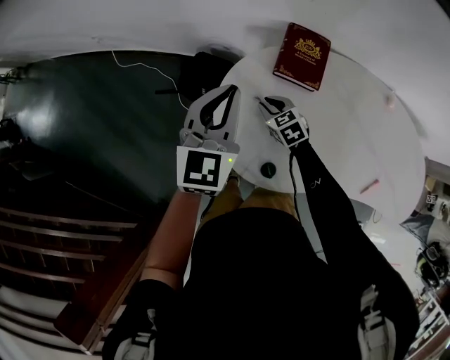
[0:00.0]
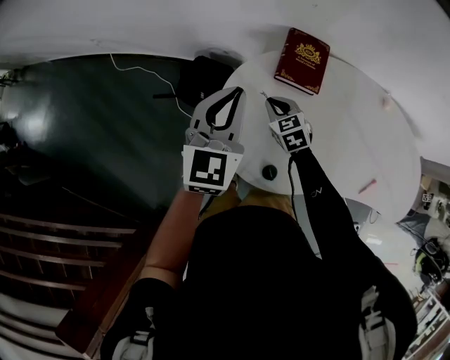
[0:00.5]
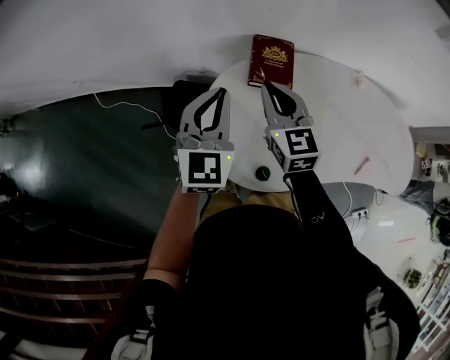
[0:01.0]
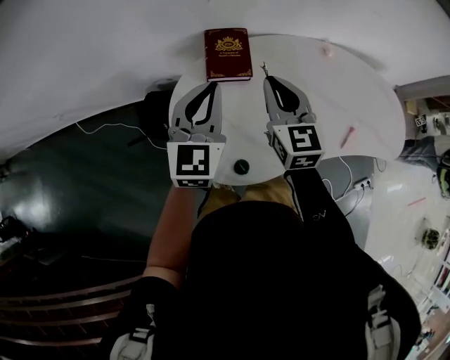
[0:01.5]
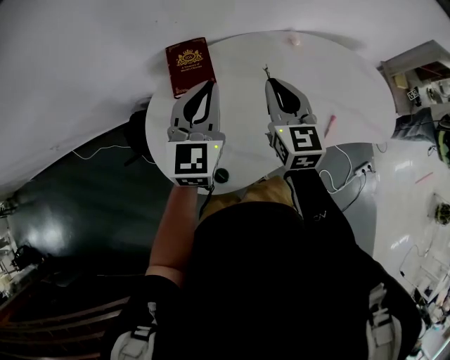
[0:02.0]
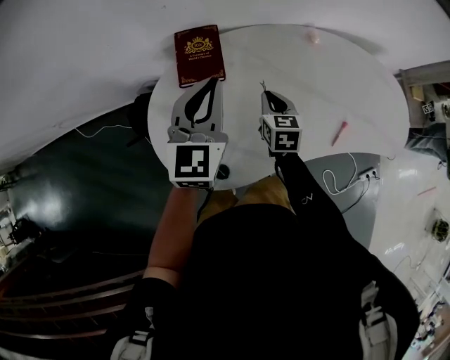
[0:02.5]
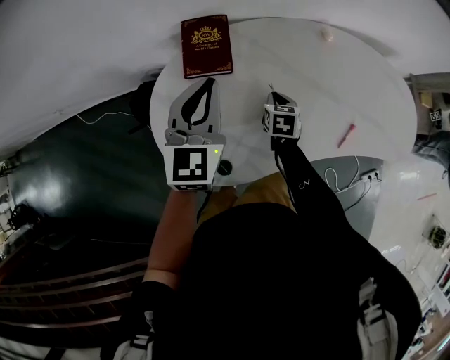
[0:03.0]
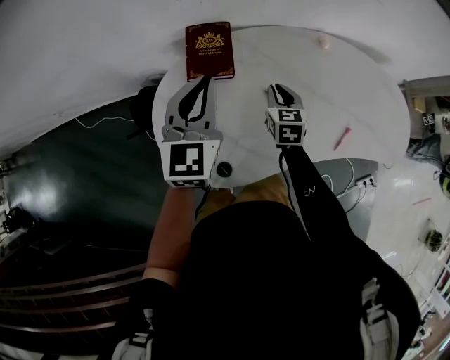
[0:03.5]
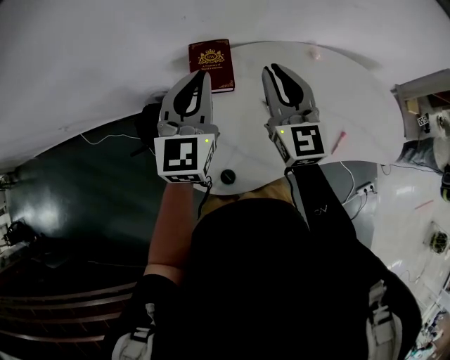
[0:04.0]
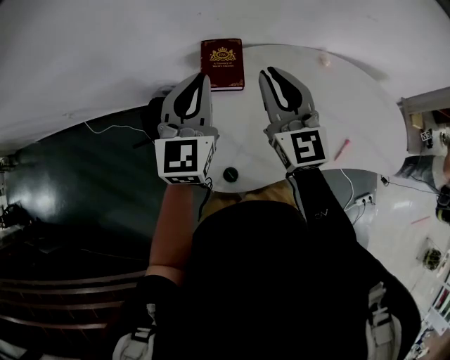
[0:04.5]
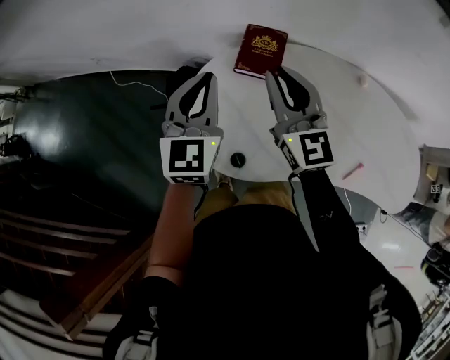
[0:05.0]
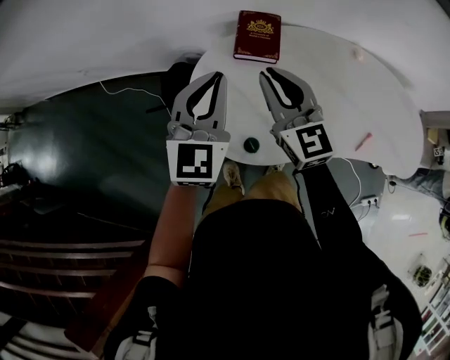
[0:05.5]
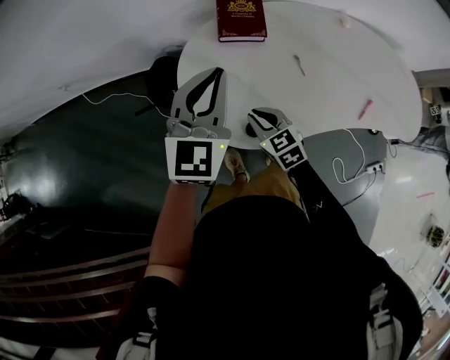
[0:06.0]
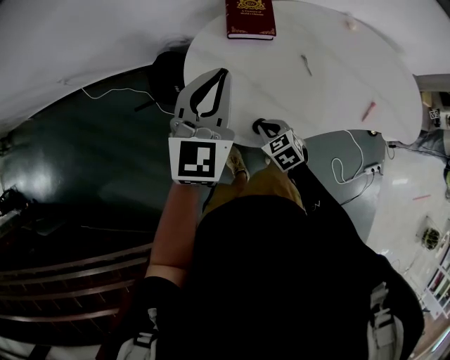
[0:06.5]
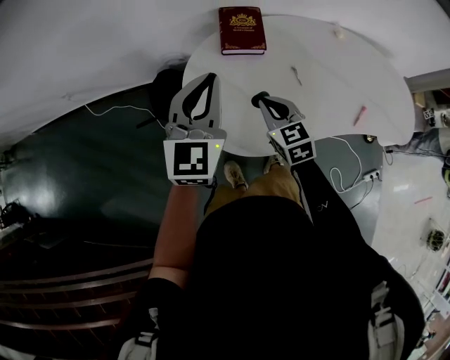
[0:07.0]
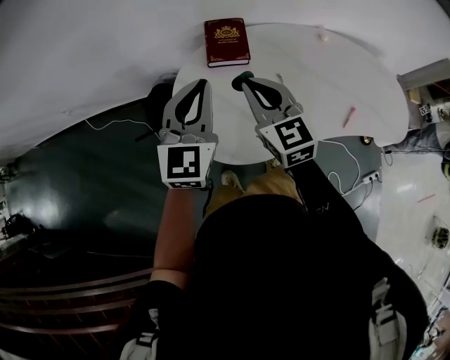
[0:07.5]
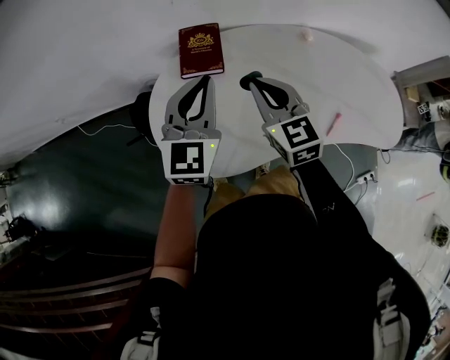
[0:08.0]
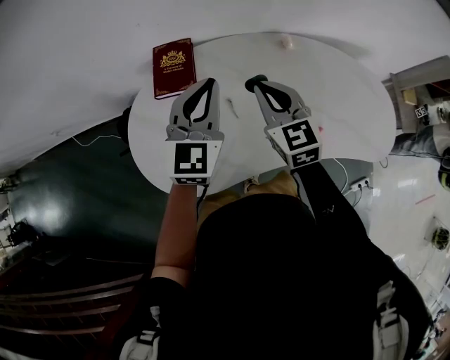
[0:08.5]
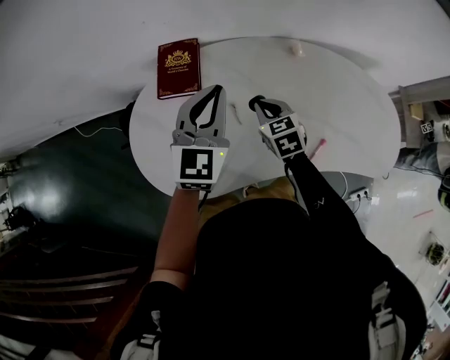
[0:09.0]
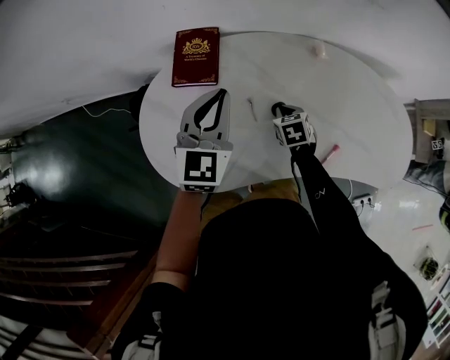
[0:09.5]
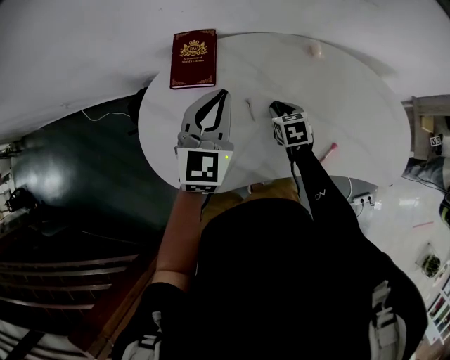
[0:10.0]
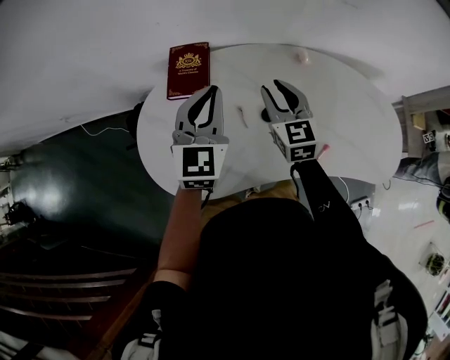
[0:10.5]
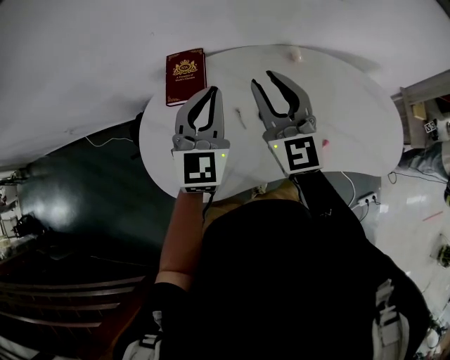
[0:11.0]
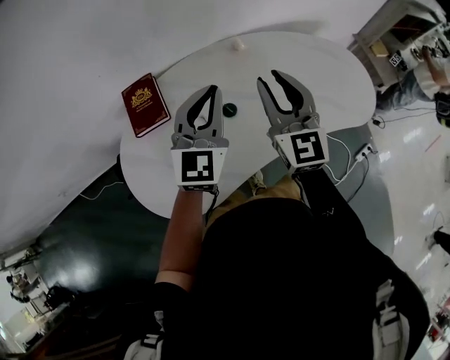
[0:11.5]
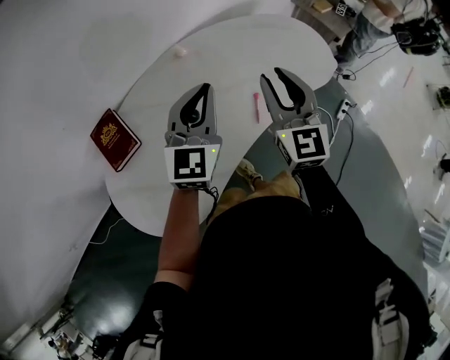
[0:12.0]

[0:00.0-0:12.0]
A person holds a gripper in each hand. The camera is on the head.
0:00.0 to 0:02.0: The right gripper moves approximately 40 cm, and tips its fingers upward by about 30 degrees. Meanwhile the left gripper moves approximately 20 cm, and turns by roughly 20 degrees.
0:02.0 to 0:04.0: Both grippers travel together to the left, approximately 5 cm. The right gripper goes downward and returns, roughly 25 cm each way, and rotates roughly 20 degrees.
0:04.0 to 0:06.0: The left gripper travels backward, to the left and downward by about 15 cm, while the right gripper is displaced downward, to the left and backward by roughly 35 cm, and tilts its fingers roughly 40 degrees downward.
0:06.0 to 0:08.0: The right gripper shifts about 25 cm upward, to the right and forward, and turns by some 30 degrees. Meanwhile the left gripper heads to the right, covering some 10 cm.
0:08.0 to 0:10.0: The left gripper heads to the right, downward and forward, covering roughly 15 cm. Meanwhile the right gripper moves downward and to the right, some 30 cm, angles its fingers downward, by approximately 40 degrees, and opens its fingers.
0:10.0 to 0:12.0: The left gripper changes place by roughly 20 cm, and turns by some 40 degrees. The right gripper is displaced upward by approximately 30 cm, and tips its fingers upward by some 50 degrees.

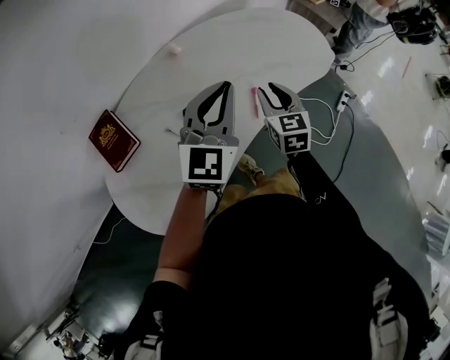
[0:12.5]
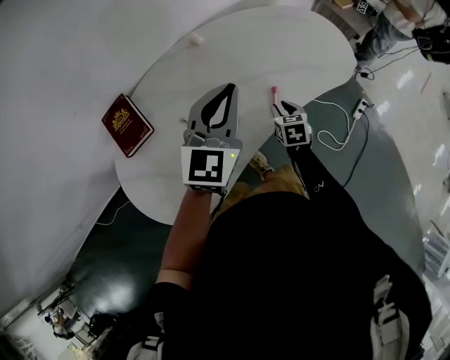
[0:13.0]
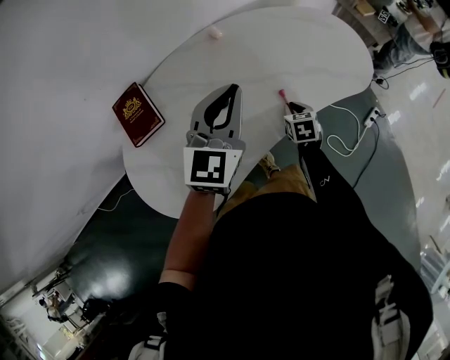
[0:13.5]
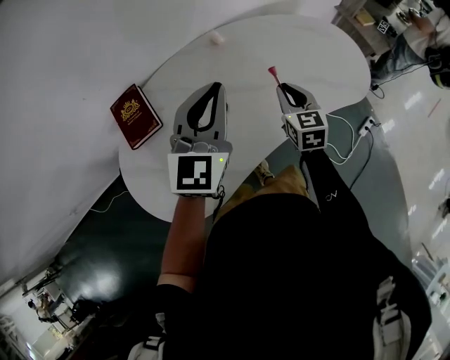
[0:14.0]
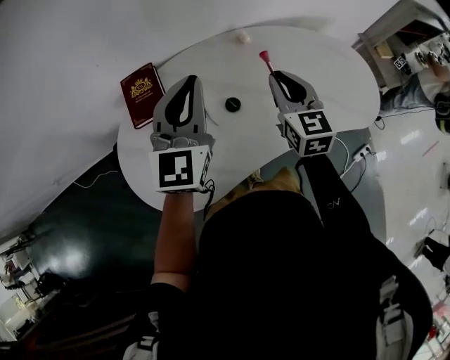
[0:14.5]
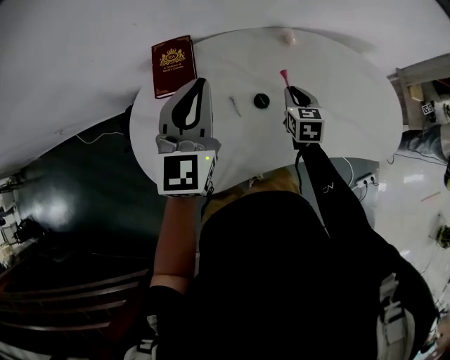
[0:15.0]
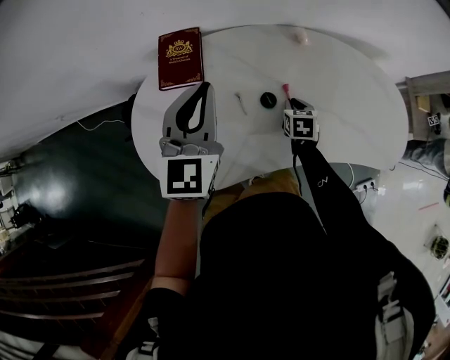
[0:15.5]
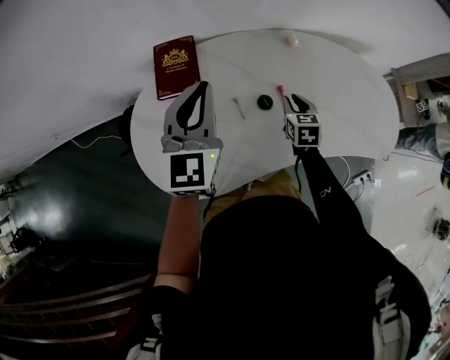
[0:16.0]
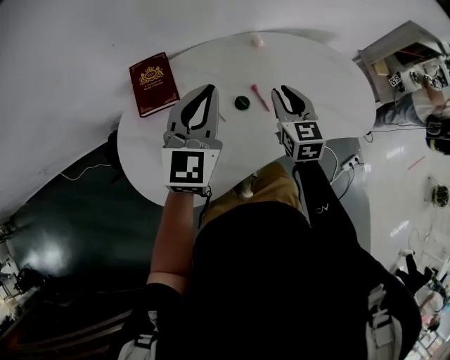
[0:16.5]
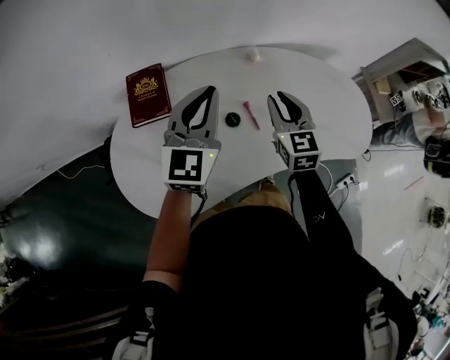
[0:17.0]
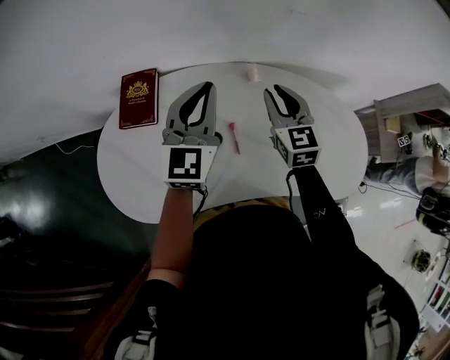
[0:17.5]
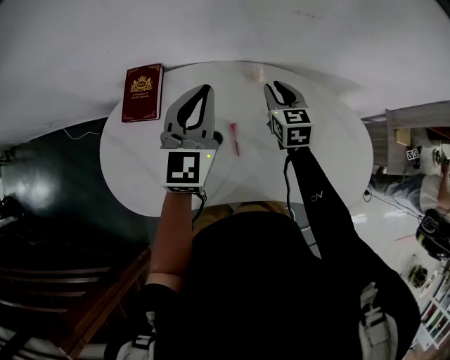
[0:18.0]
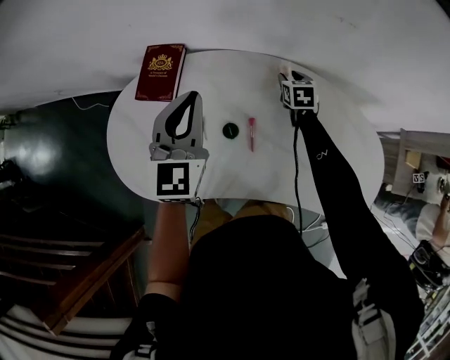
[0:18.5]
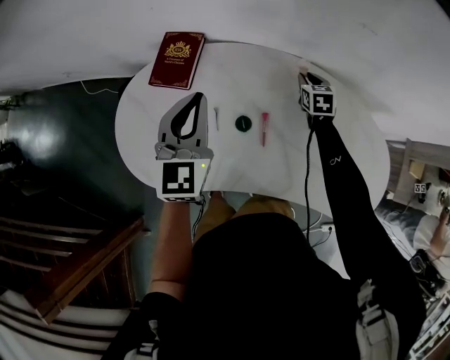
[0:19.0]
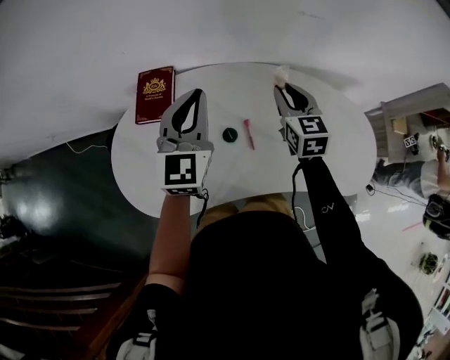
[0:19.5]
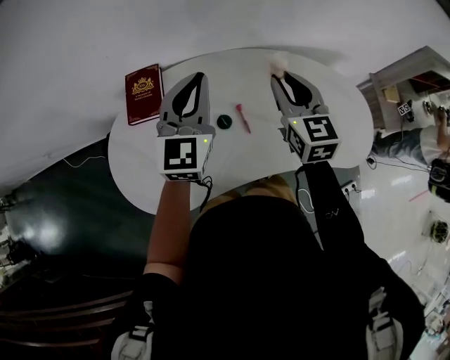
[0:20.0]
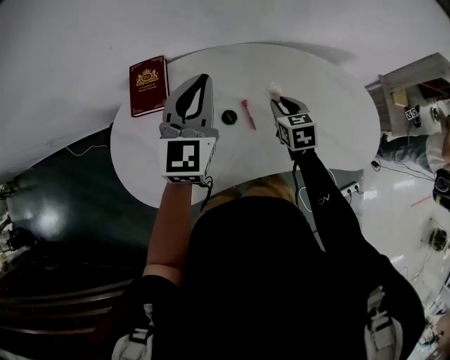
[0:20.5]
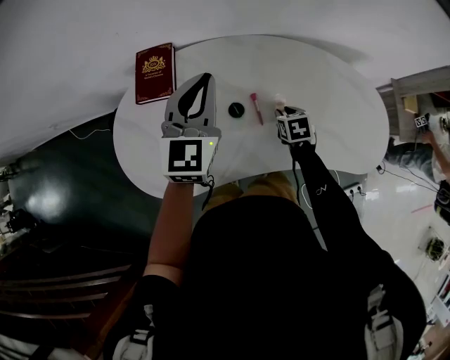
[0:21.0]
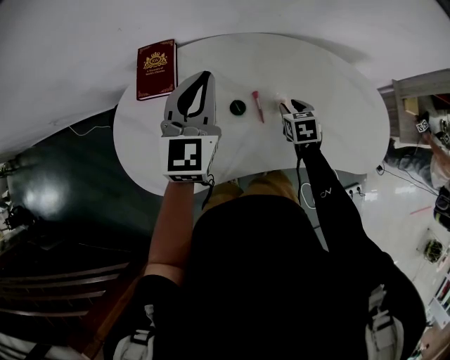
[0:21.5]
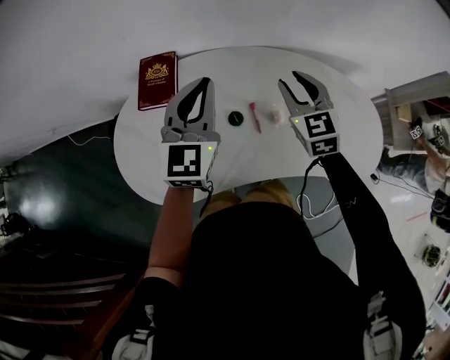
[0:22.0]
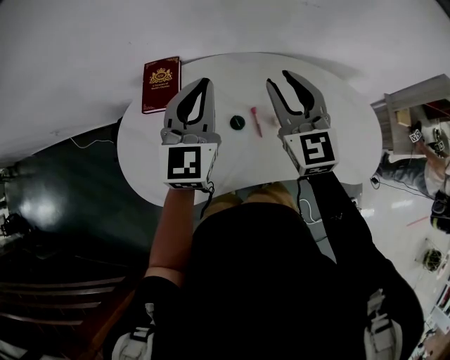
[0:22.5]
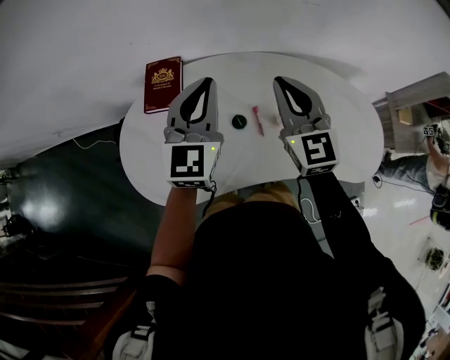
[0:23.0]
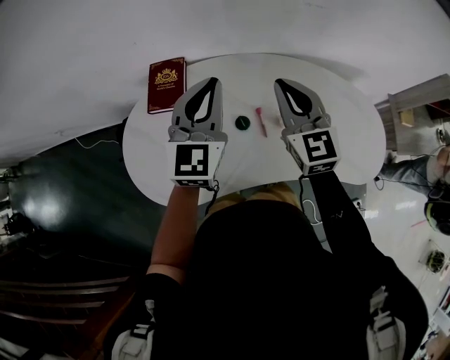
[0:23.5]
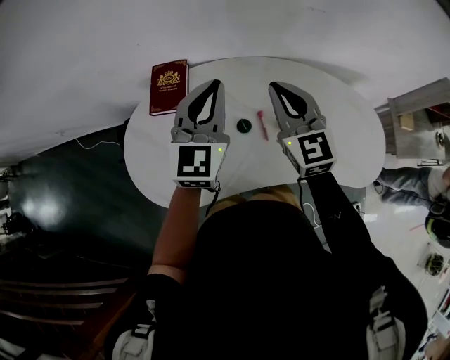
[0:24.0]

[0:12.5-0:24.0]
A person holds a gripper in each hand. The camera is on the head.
0:12.5 to 0:14.5: The left gripper ends up approximately 20 cm from where it was, and swivels roughly 30 degrees; the right gripper goes downward and returns, approximately 20 cm each way, and swivels some 30 degrees.
0:14.5 to 0:16.5: The right gripper goes downward and returns, approximately 25 cm each way.
0:16.5 to 0:18.5: The right gripper moves approximately 35 cm, and swivels approximately 30 degrees, while the left gripper changes its angle by roughly 30 degrees.
0:18.5 to 0:20.0: The left gripper turns by about 20 degrees; the right gripper travels upward and backward by about 35 cm, and points its fingers approximately 30 degrees further upward.
0:20.0 to 0:22.0: The right gripper reaches about 30 cm downward, then returns.
0:22.0 to 0:24.0: The right gripper is displaced upward and to the left by about 10 cm, and closes its fingers.

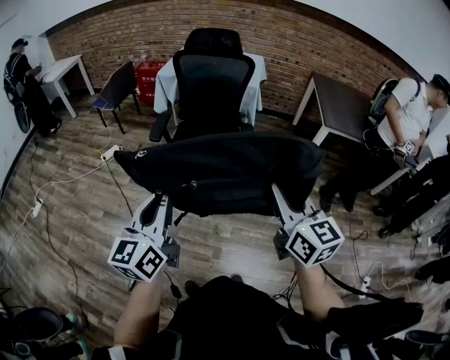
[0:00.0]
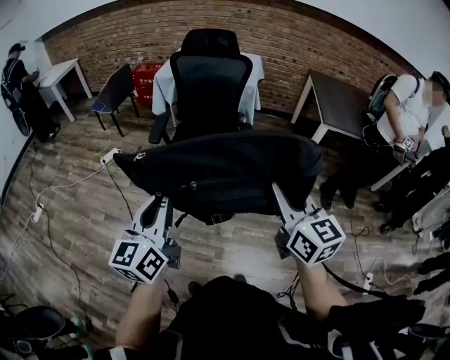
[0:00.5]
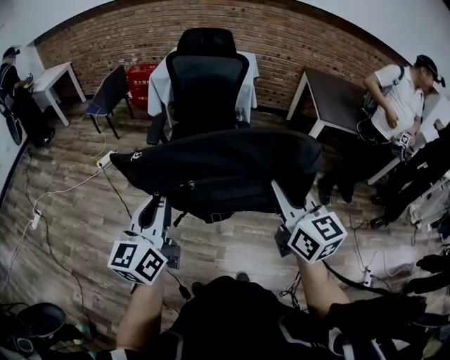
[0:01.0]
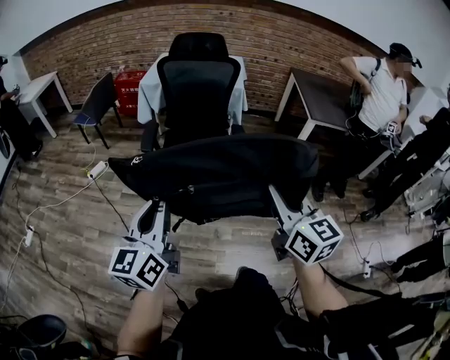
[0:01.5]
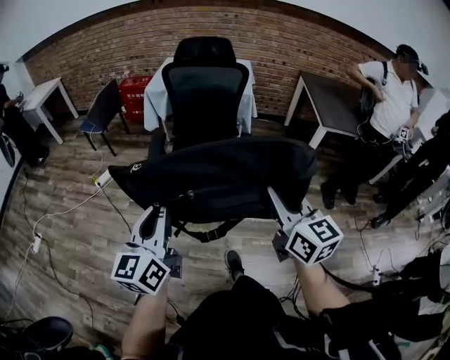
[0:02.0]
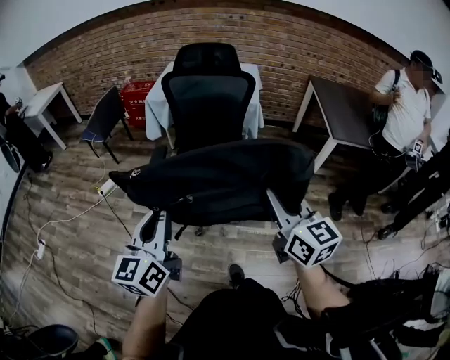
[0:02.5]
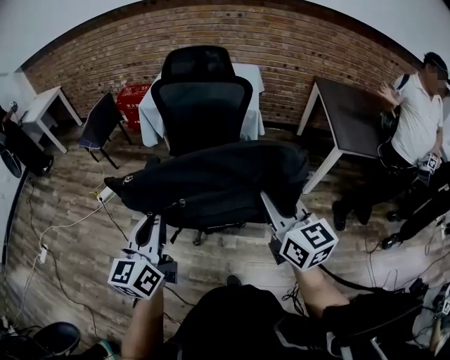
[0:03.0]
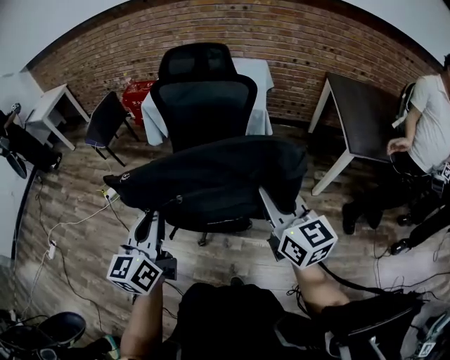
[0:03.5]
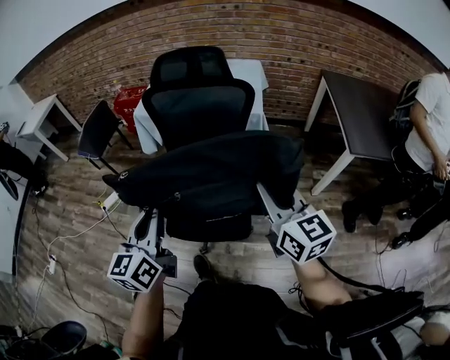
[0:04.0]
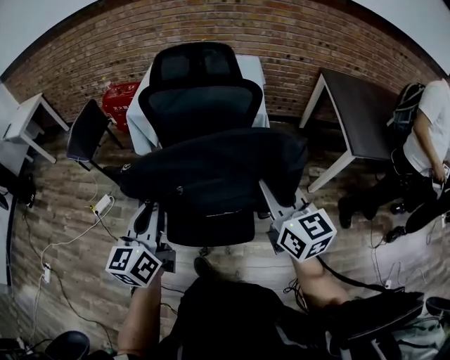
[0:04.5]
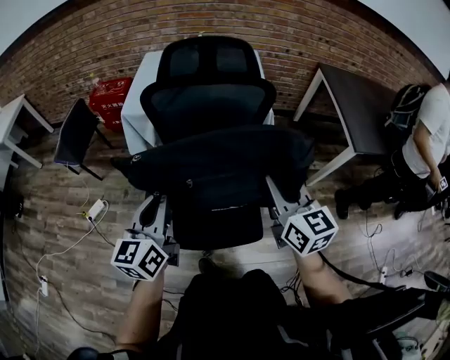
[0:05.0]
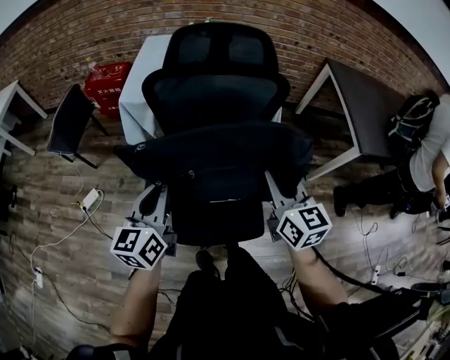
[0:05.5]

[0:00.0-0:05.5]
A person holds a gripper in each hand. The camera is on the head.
0:00.0 to 0:02.0: The two grippers go approximately 10 cm forward and to the left.
0:02.0 to 0:03.5: The grippers both shift forward and to the right by about 25 cm.
0:03.5 to 0:05.5: Both grippers move forward and to the left, some 25 cm.
